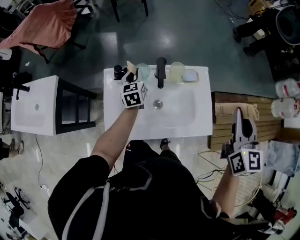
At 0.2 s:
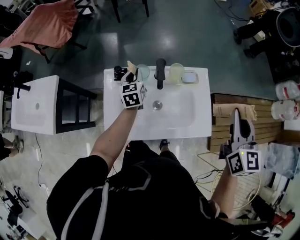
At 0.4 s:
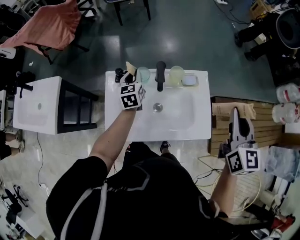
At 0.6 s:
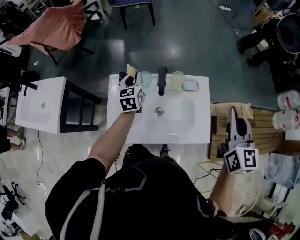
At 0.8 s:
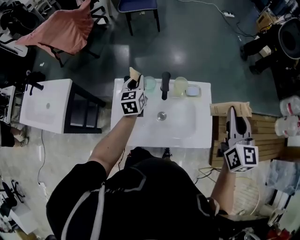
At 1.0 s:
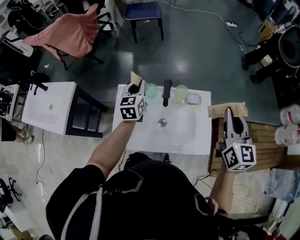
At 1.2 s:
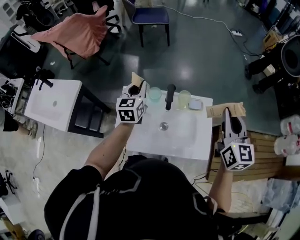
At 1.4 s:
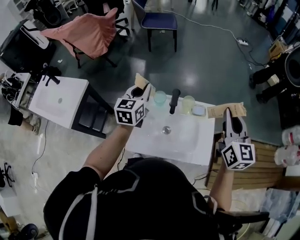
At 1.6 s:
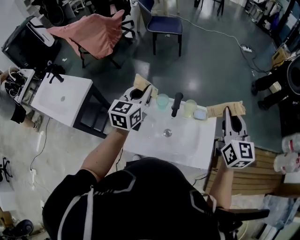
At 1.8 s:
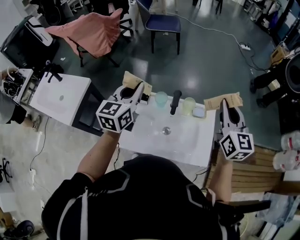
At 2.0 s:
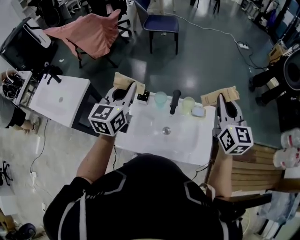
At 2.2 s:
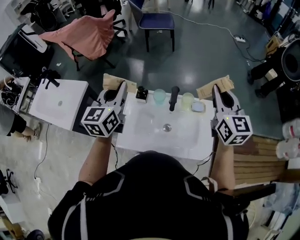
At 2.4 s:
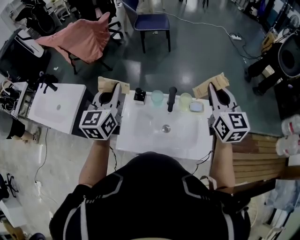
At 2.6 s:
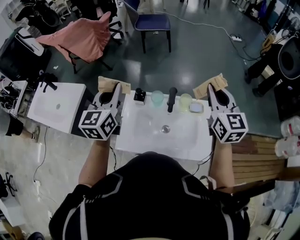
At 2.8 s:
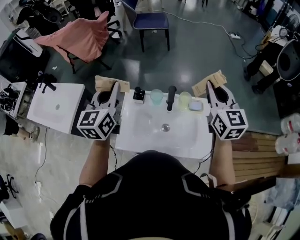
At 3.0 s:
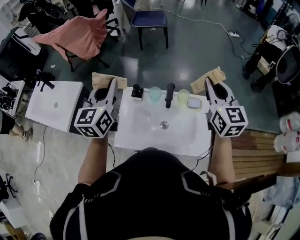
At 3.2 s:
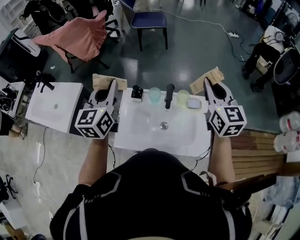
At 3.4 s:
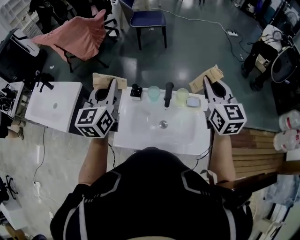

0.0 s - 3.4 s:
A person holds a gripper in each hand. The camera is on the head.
0.0 s - 1.6 s: The right gripper moves forward, upward and to the left, some 10 cm, and swivels about 20 degrees; the left gripper heads upward, covering some 25 cm.
1.6 s - 3.4 s: The right gripper goes about 5 cm to the left; the left gripper travels to the left and upward by about 10 cm.

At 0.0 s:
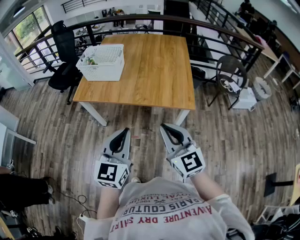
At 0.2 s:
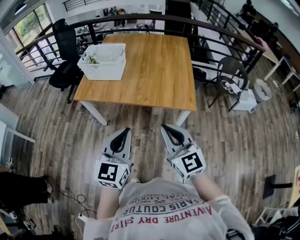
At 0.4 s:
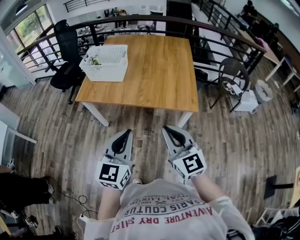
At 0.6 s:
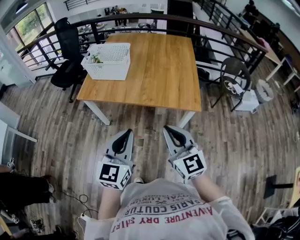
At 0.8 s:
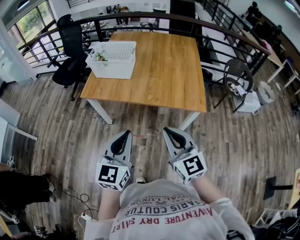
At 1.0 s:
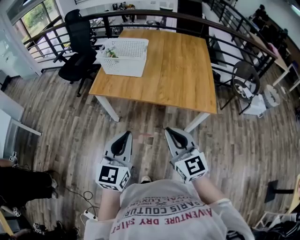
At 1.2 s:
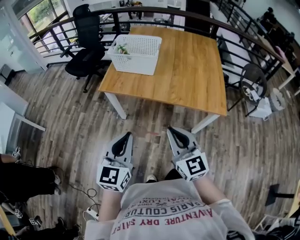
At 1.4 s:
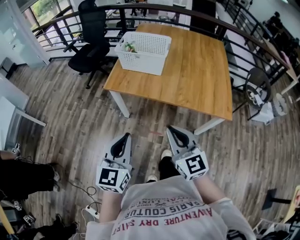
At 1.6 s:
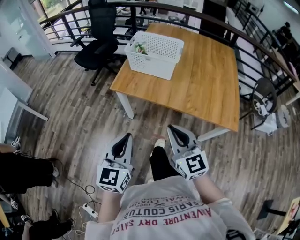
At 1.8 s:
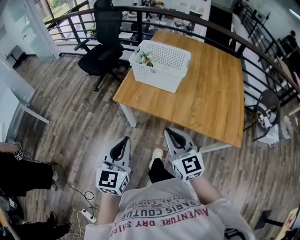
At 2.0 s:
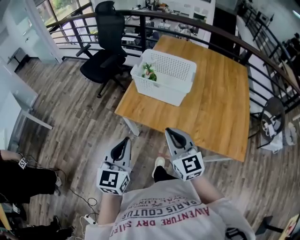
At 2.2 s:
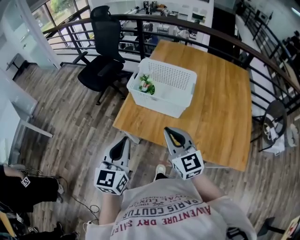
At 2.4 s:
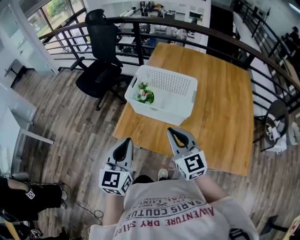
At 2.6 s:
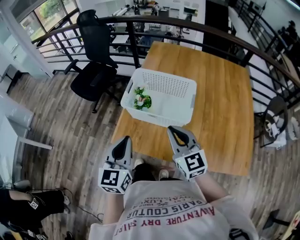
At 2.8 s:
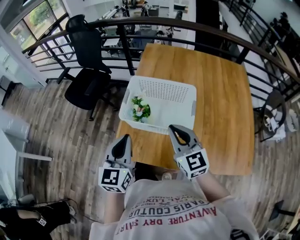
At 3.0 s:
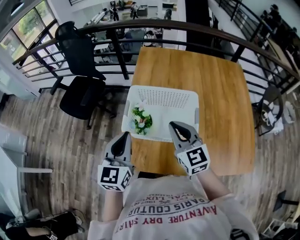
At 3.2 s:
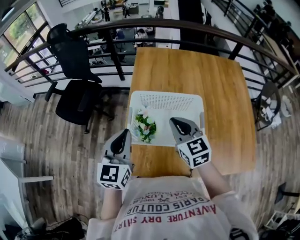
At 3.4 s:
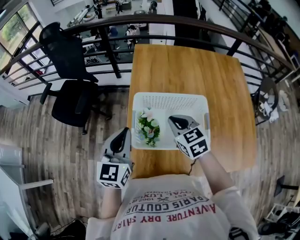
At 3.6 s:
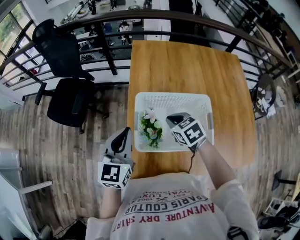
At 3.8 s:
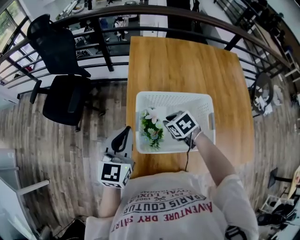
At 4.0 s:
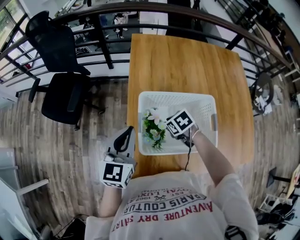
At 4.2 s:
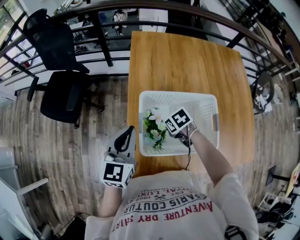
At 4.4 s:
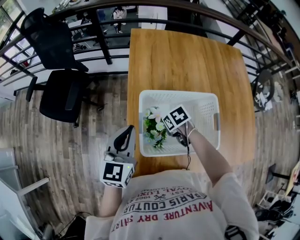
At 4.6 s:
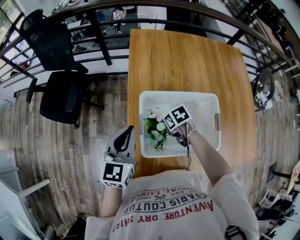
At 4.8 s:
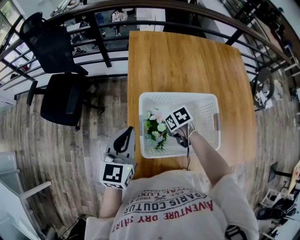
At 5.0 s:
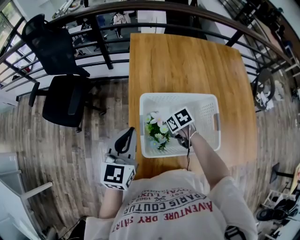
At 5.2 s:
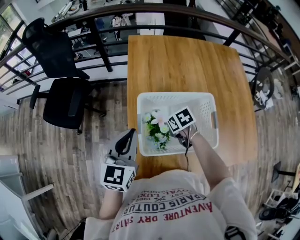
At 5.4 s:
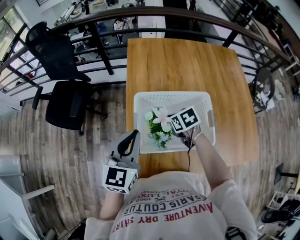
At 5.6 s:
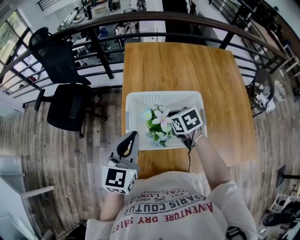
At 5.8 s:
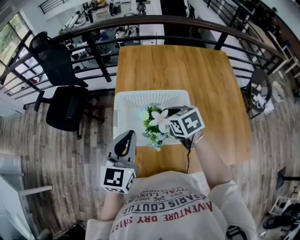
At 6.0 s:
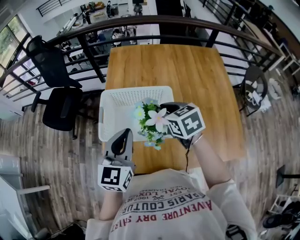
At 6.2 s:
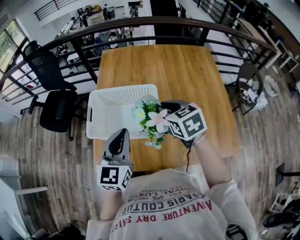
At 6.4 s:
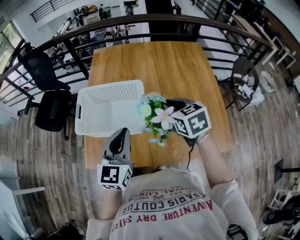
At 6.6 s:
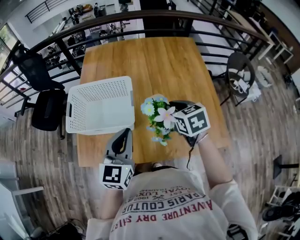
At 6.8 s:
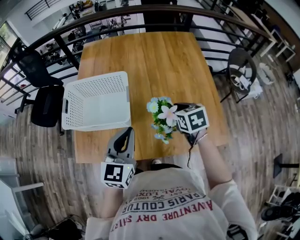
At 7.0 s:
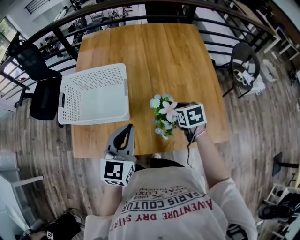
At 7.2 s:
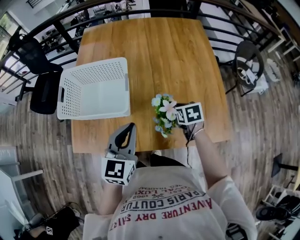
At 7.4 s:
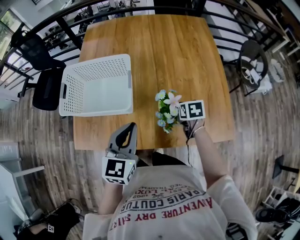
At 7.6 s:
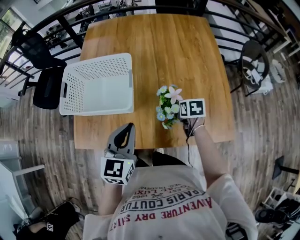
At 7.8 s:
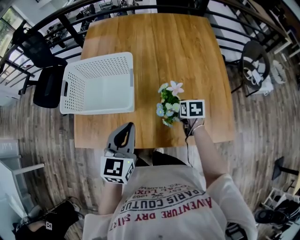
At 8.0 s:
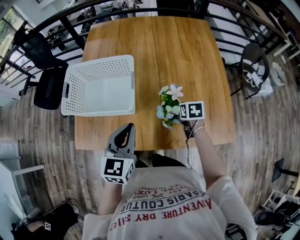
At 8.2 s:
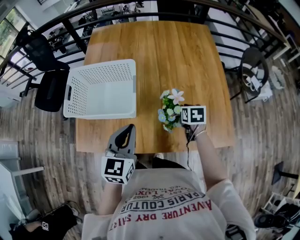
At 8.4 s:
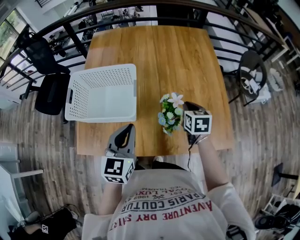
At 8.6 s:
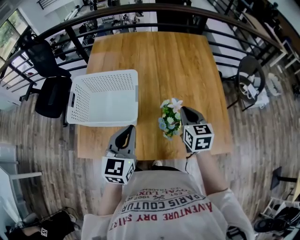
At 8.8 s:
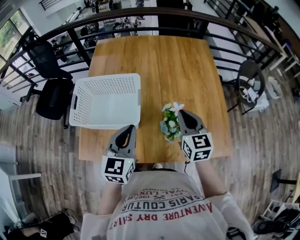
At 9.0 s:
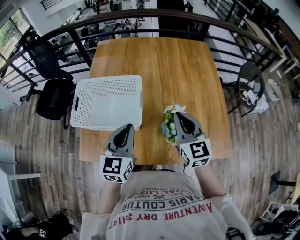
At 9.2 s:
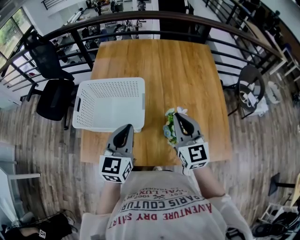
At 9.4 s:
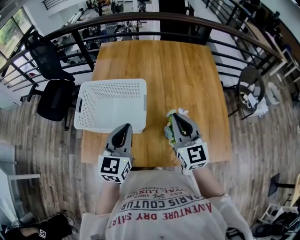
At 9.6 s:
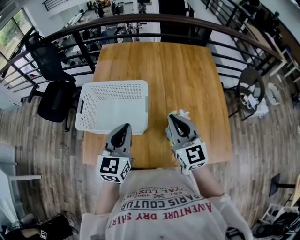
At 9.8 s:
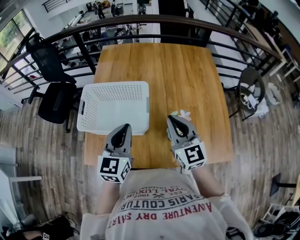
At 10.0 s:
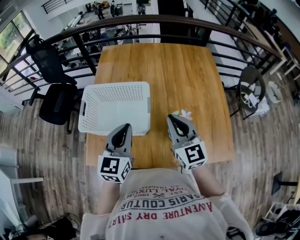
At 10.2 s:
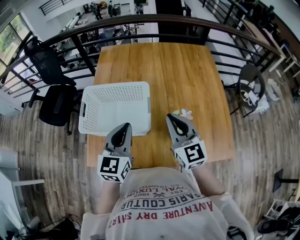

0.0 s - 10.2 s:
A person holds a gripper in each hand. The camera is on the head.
0.0 s - 1.4 s: Both grippers travel together to the left, about 25 cm.
1.4 s - 3.0 s: The two grippers travel together, forward, roughly 60 cm.
3.0 s - 4.4 s: The right gripper heads downward and forward, covering roughly 30 cm, and angles its fingers downward, by some 60 degrees, while the left gripper heads forward and downward, covering about 15 cm.
4.4 s - 5.8 s: The right gripper heads upward and to the right, covering some 20 cm, and swivels roughly 30 degrees; the left gripper is displaced backward, to the right and upward by some 15 cm.
5.8 s - 7.2 s: The left gripper shifts about 30 cm to the right and backward. Meanwhile the right gripper travels to the right and downward by some 40 cm, and rotates about 20 degrees.
7.2 s - 8.8 s: The right gripper is displaced upward by some 20 cm, and tilts its fingers some 40 degrees upward, while the left gripper moves about 5 cm.
8.8 s - 10.2 s: The right gripper moves to the left and upward, approximately 10 cm; the left gripper travels to the left by about 5 cm.

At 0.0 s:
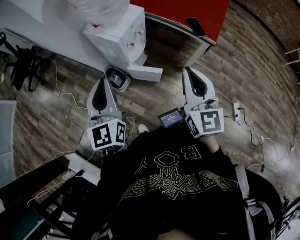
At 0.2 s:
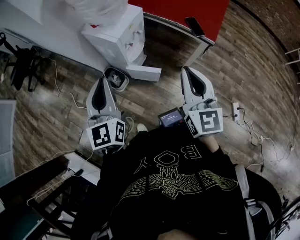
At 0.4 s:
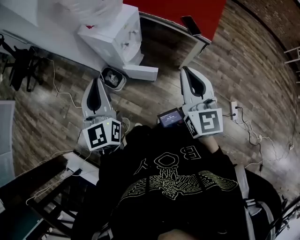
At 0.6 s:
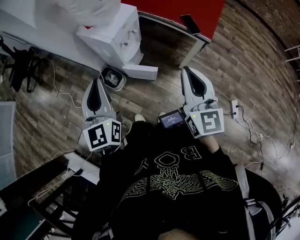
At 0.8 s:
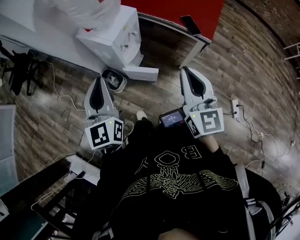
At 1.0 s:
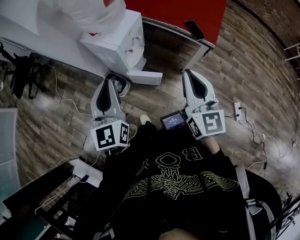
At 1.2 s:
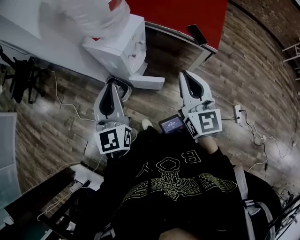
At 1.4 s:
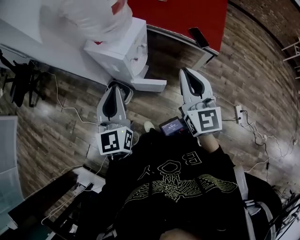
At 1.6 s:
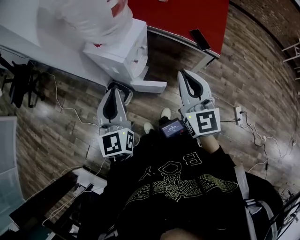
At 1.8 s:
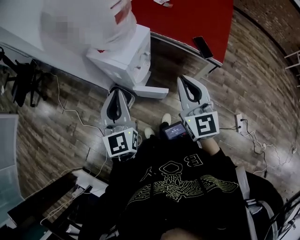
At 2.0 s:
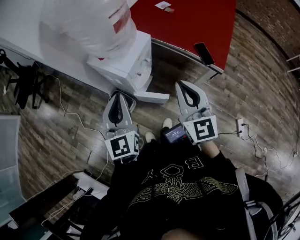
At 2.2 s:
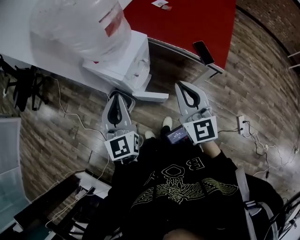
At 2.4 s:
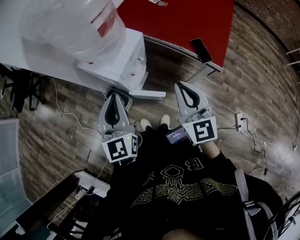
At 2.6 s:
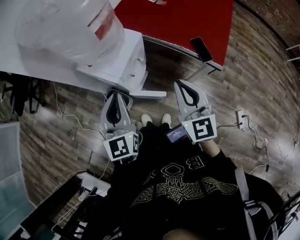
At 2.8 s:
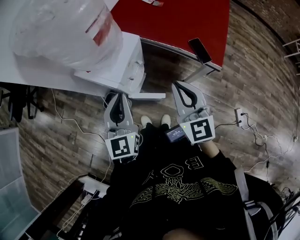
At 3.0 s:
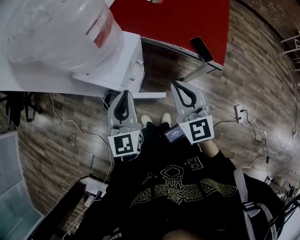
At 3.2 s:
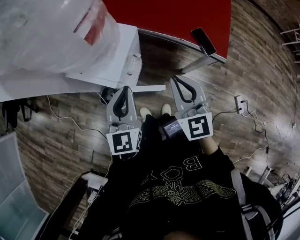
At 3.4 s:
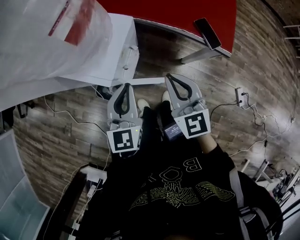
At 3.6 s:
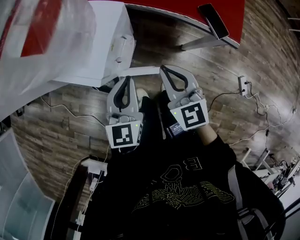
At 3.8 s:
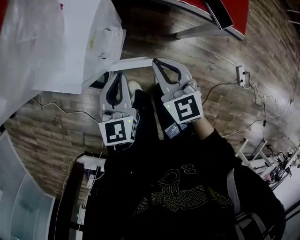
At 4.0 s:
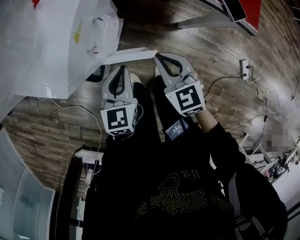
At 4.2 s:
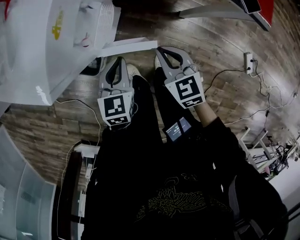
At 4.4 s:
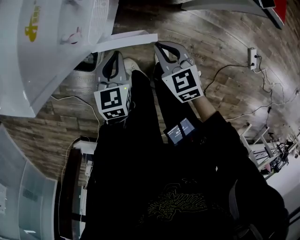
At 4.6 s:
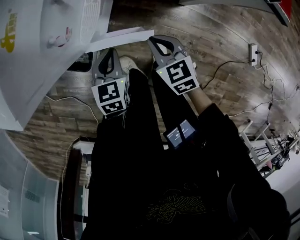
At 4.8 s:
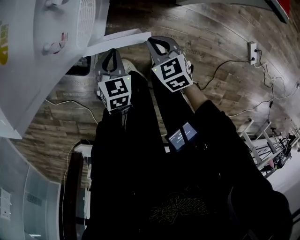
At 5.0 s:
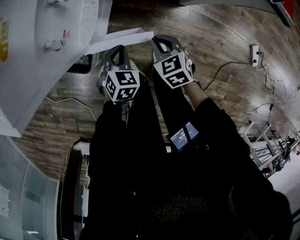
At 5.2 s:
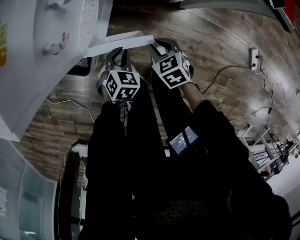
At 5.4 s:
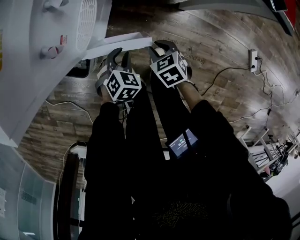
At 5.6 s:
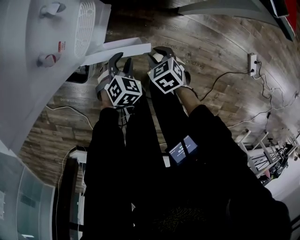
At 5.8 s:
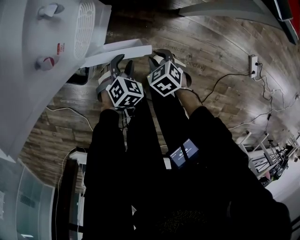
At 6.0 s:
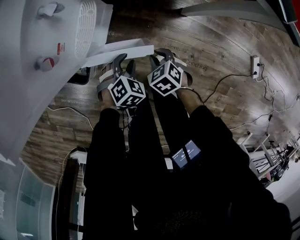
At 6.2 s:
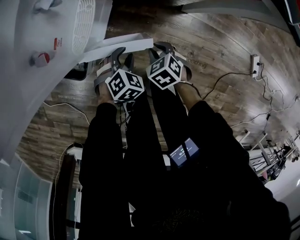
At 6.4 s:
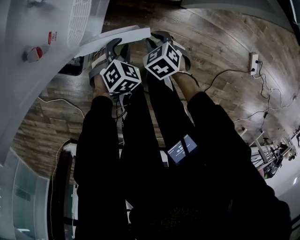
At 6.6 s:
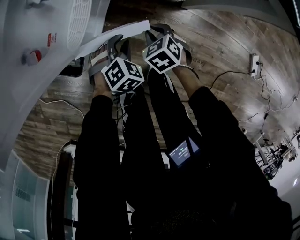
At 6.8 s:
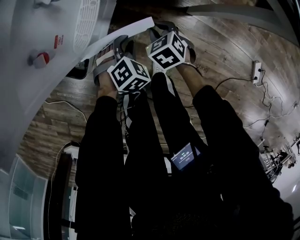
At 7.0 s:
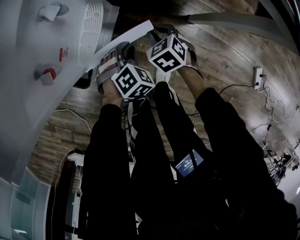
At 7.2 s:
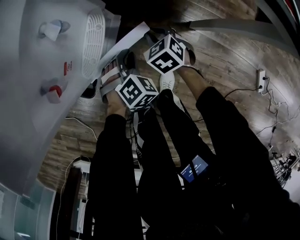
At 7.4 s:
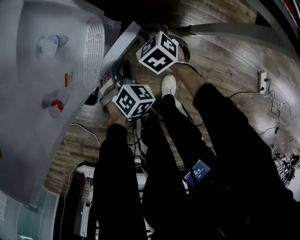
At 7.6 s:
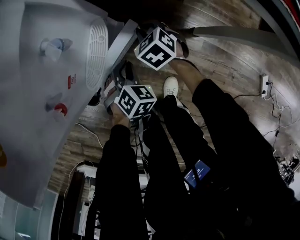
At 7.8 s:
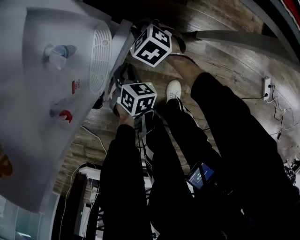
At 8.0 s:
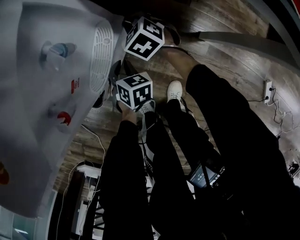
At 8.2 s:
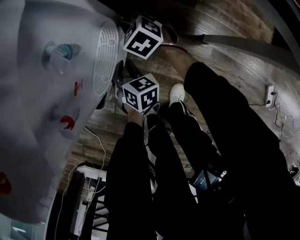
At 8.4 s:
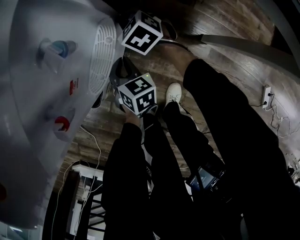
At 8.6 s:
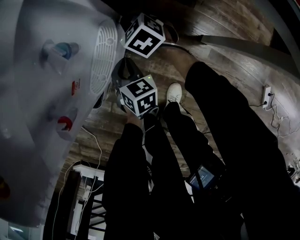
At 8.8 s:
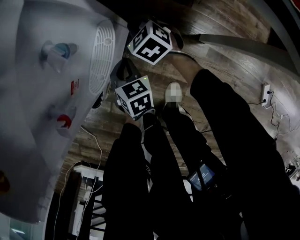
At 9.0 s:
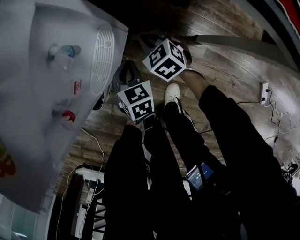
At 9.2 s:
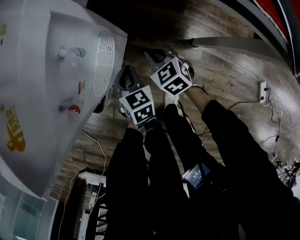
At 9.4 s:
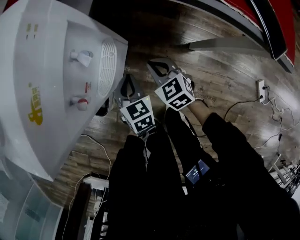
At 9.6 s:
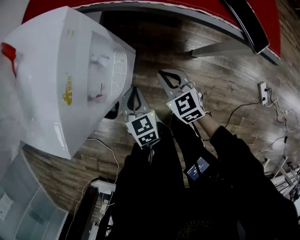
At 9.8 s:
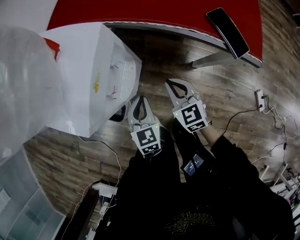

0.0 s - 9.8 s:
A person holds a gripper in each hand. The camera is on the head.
0.0 s - 1.4 s: Both grippers move forward, roughly 10 cm.
1.4 s - 2.8 s: The right gripper shifts roughly 15 cm forward and downward, while the left gripper moves forward and to the right, approximately 15 cm.
2.8 s - 4.2 s: The two grippers go approximately 40 cm downward. The right gripper tips its fingers downward by roughly 30 degrees. Meanwhile the left gripper tips its fingers downward by some 30 degrees.
4.2 s - 5.6 s: The grippers both shift downward by approximately 20 cm. The right gripper swivels about 30 degrees, and opens its fingers. The left gripper turns by about 40 degrees, and opens its fingers.
5.6 s - 7.0 s: The right gripper goes roughly 15 cm forward; the left gripper moves forward, approximately 10 cm.
7.0 s - 8.4 s: The left gripper shifts by about 10 cm, and twists roughly 50 degrees counterclockwise, seen from behind. The right gripper moves some 20 cm, and changes its angle by roughly 20 degrees.
8.4 s - 9.8 s: The right gripper is displaced upward and backward by some 35 cm, and turns by some 30 degrees, while the left gripper moves upward, approximately 25 cm, and turns by roughly 30 degrees.
